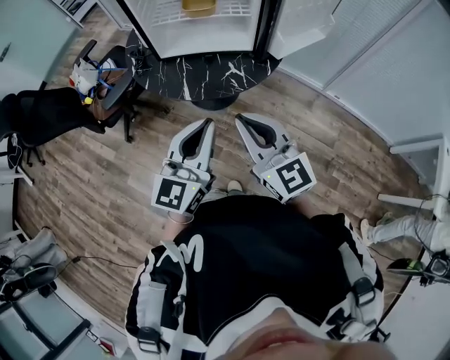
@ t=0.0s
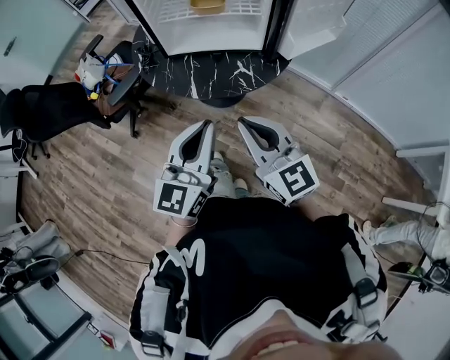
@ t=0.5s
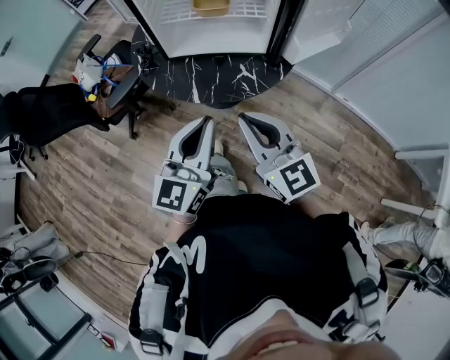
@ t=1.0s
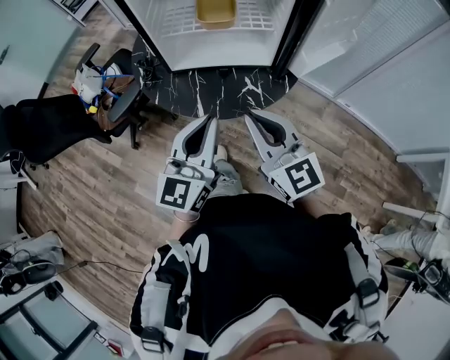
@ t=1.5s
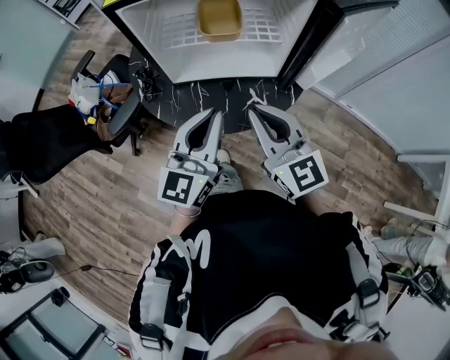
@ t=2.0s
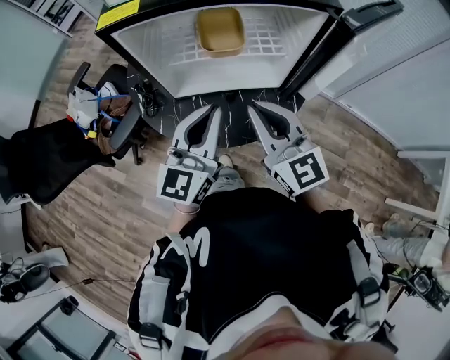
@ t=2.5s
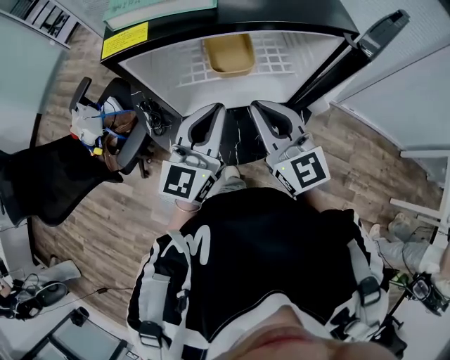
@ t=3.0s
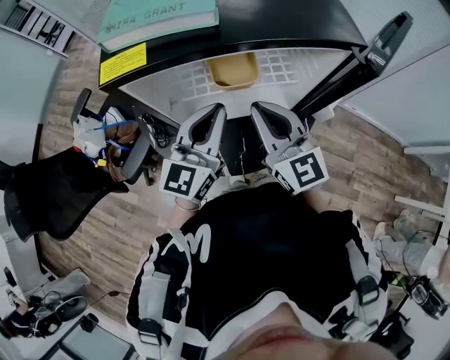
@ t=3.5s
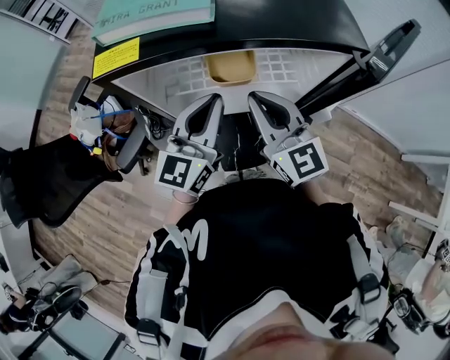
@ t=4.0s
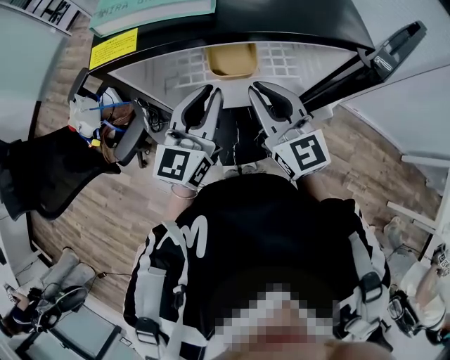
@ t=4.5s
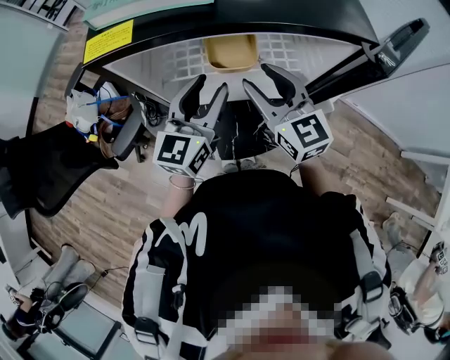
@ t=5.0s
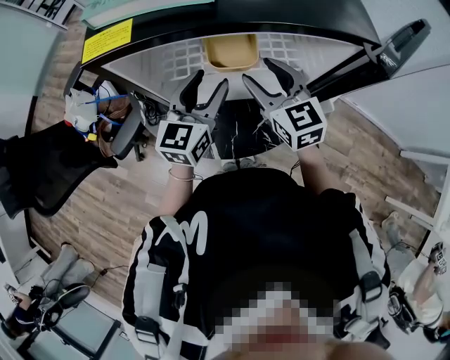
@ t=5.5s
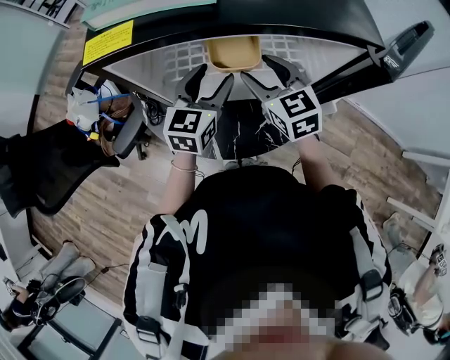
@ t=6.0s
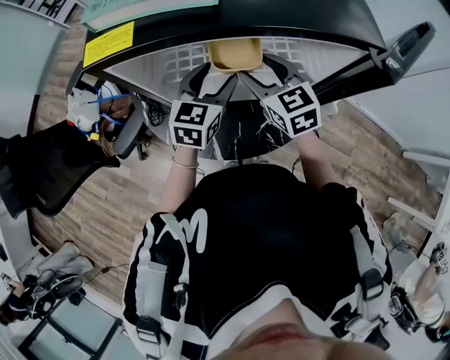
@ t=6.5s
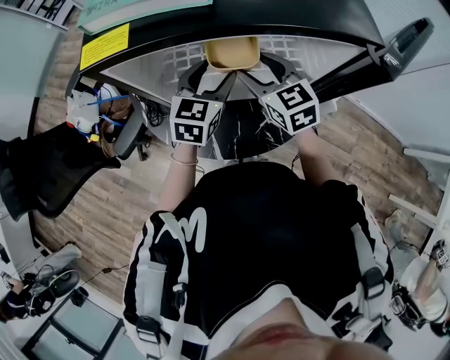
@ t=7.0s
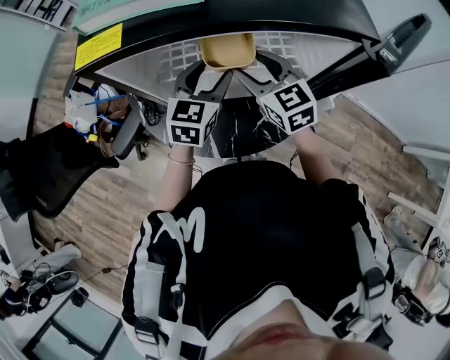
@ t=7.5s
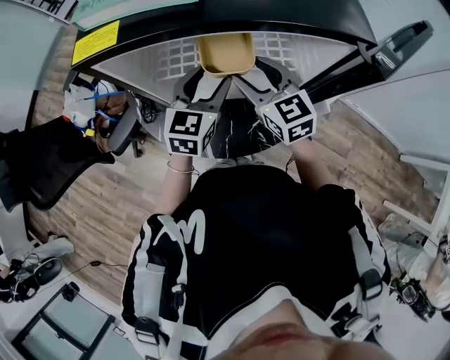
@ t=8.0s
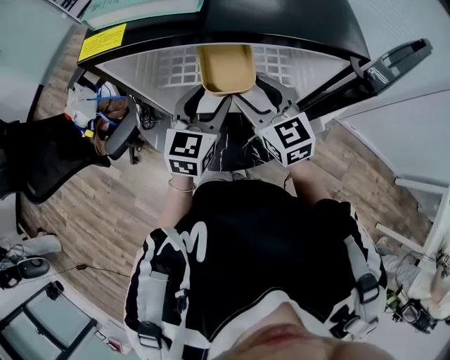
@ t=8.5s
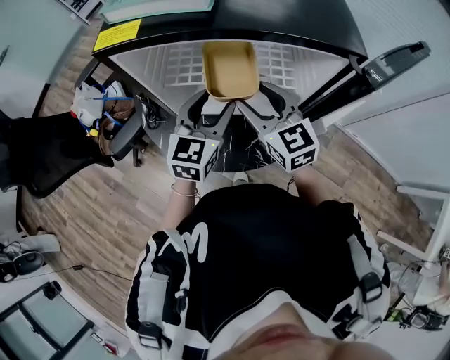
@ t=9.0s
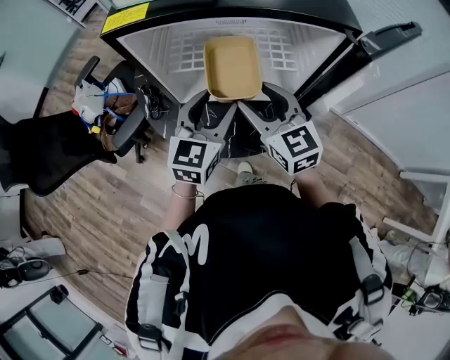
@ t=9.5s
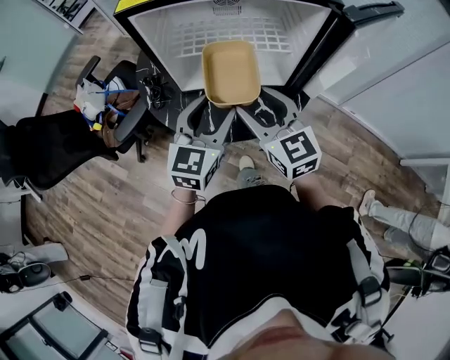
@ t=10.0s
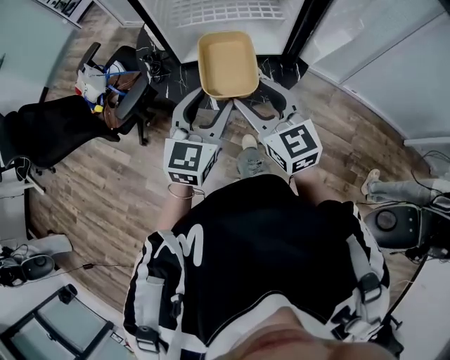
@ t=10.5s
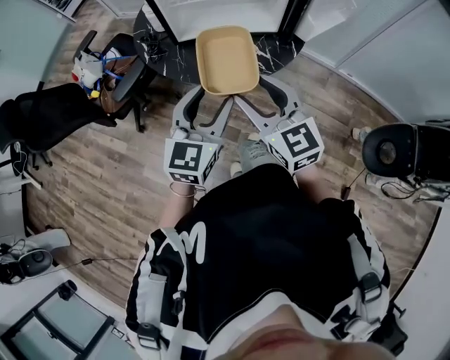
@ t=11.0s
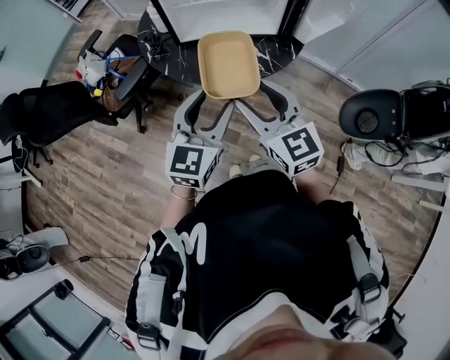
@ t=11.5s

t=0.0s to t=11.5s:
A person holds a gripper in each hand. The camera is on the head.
t=0.0s to t=2.0s: The grippers both shift forward by approximately 20 cm.
t=2.0s to t=4.0s: Both grippers travel together forward, some 20 cm.
t=4.0s to t=6.0s: Both grippers move downward and forward, roughly 10 cm. The left gripper opens up; the right gripper rotates roughly 20 degrees, and opens.
t=6.0s to t=7.5s: The grippers move only a little.
t=7.5s to t=9.5s: The grippers both shift backward by approximately 10 cm.
t=9.5s to t=11.5s: The grippers both shift backward by about 30 cm.

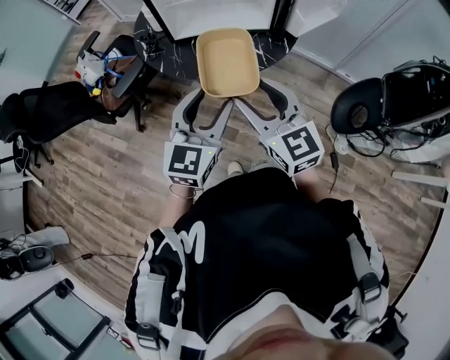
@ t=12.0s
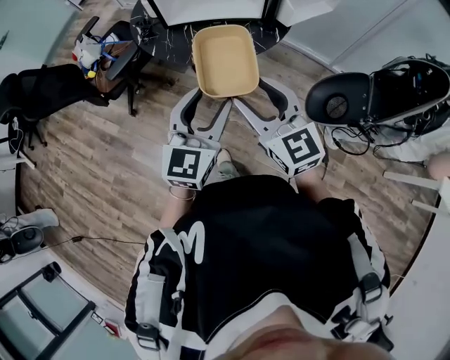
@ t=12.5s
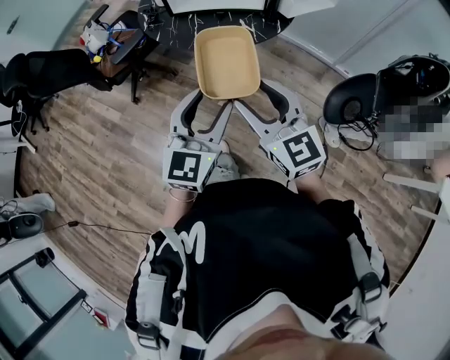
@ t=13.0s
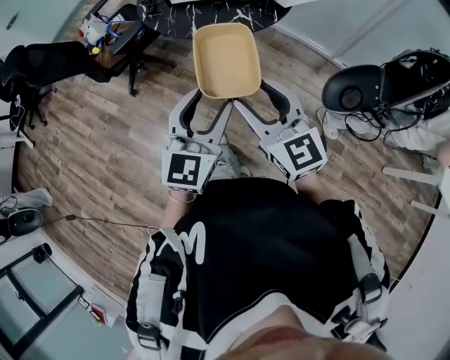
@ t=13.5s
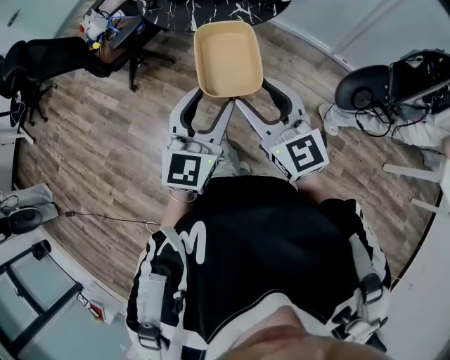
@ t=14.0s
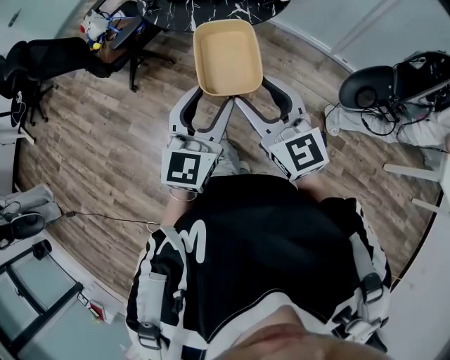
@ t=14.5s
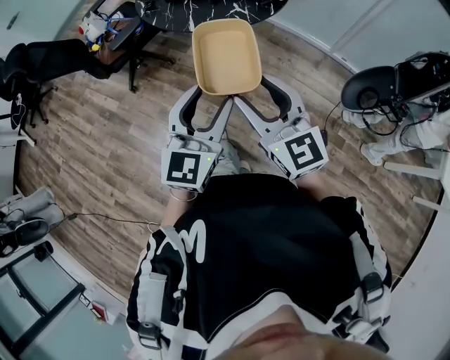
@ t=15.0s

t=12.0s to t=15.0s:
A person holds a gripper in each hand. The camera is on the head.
t=12.0s to t=13.5s: Both grippers travel together backward, about 20 cm.
t=13.5s to t=15.0s: The grippers stay close to where they were, moving slightly.

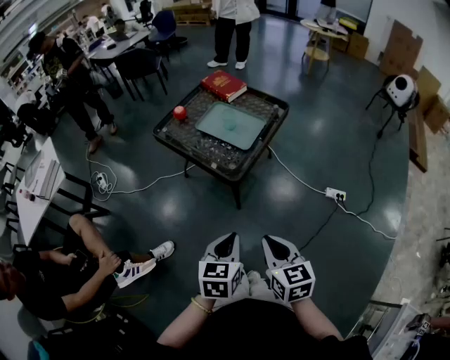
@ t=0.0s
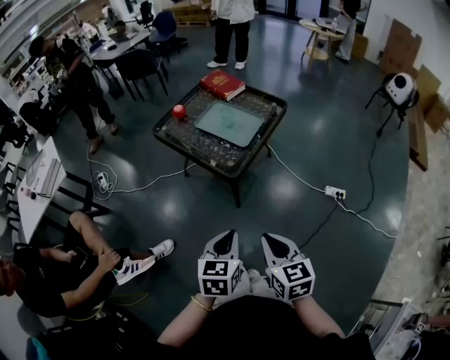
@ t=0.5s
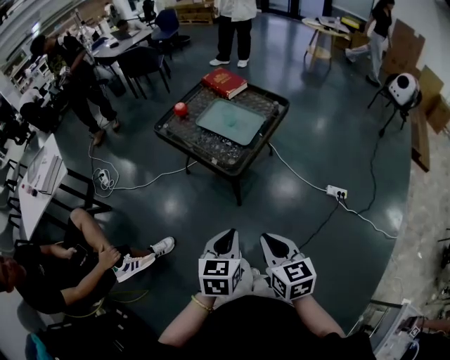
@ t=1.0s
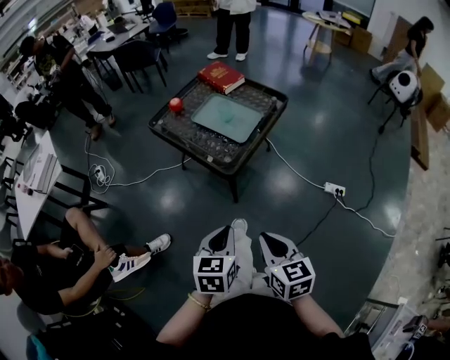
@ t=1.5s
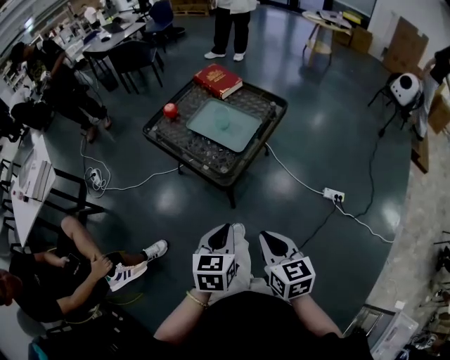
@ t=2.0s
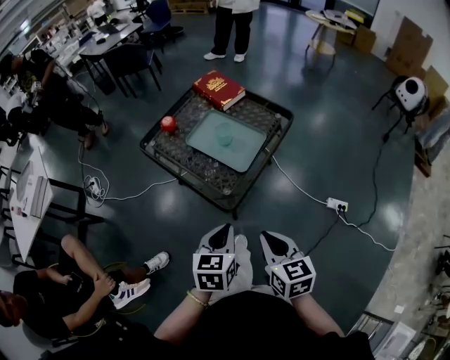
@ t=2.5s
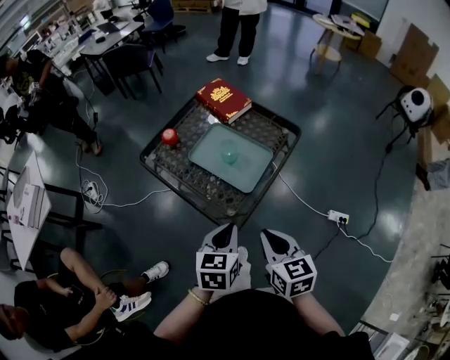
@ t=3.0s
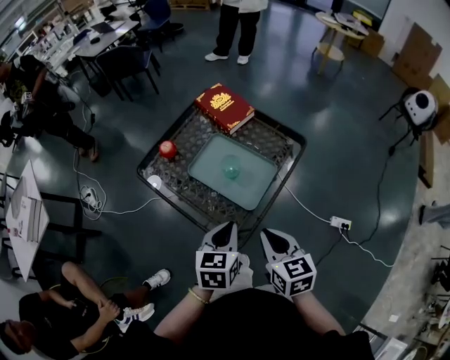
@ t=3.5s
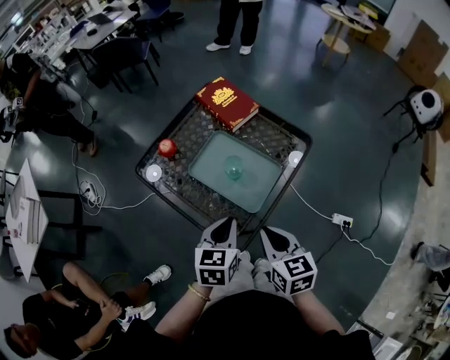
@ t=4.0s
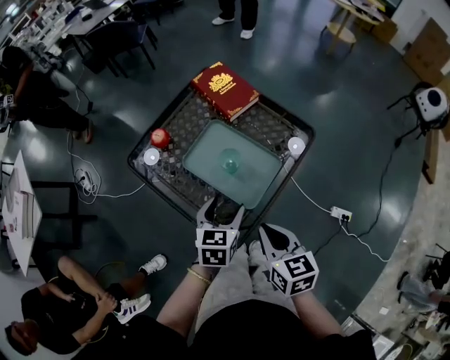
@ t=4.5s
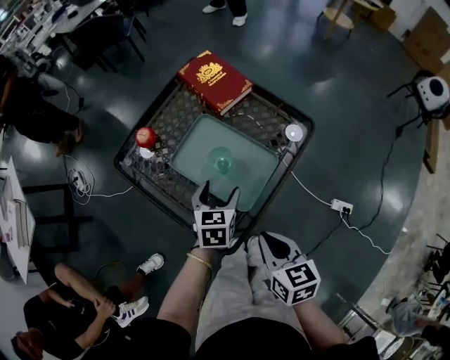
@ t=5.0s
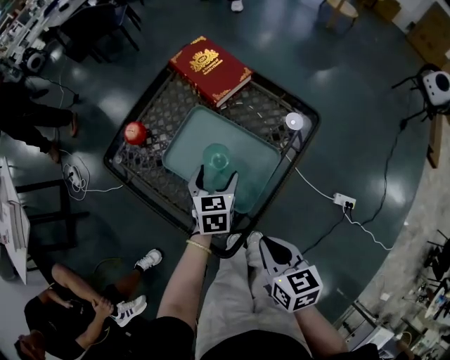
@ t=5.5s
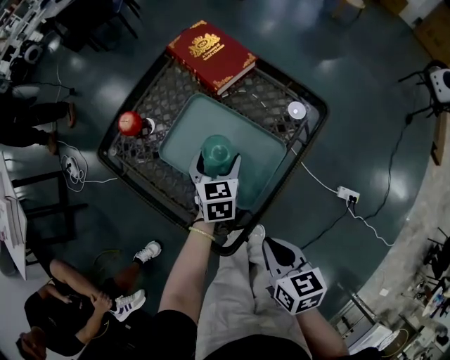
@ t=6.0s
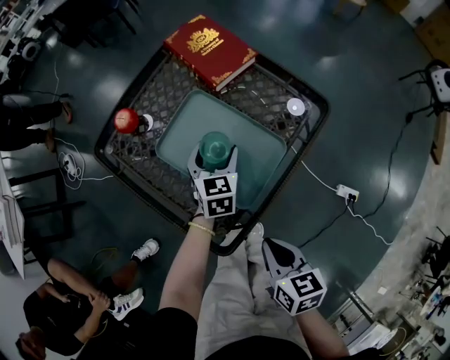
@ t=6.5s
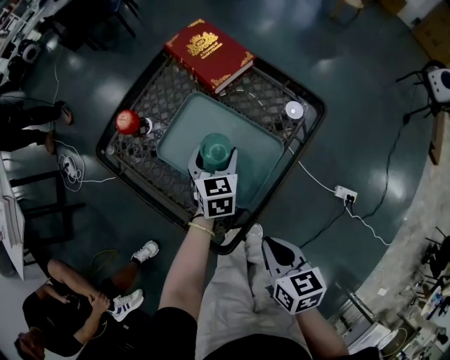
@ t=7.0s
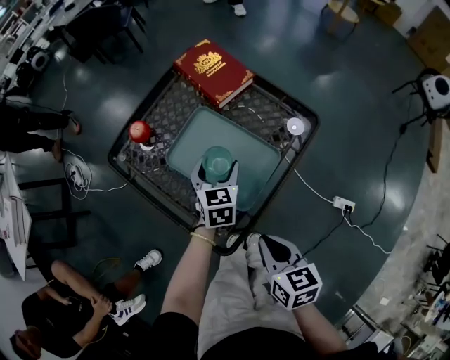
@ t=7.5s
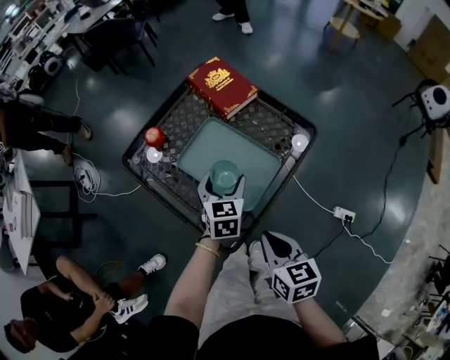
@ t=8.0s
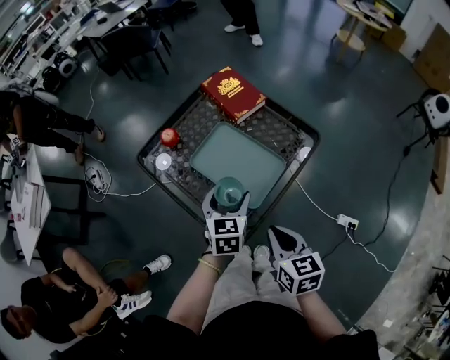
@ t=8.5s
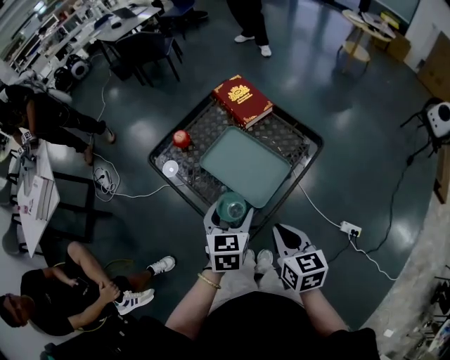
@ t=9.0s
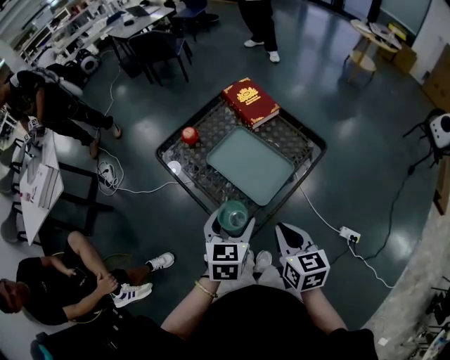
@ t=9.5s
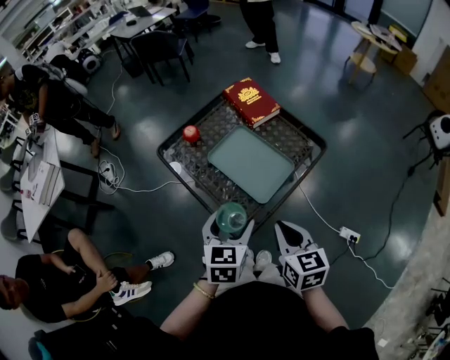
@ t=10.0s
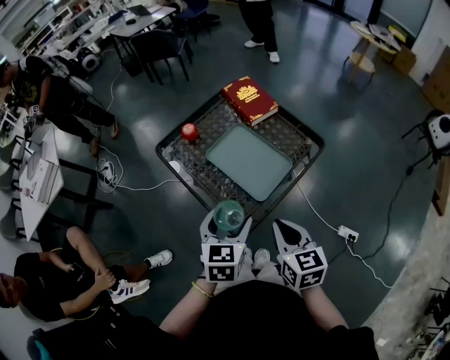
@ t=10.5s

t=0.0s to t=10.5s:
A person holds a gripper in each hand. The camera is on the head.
t=0.0s to t=2.0s: Both grippers travel together forward, some 5 cm.
t=2.0s to t=4.0s: Both grippers travel together forward, roughly 35 cm.
t=4.0s to t=6.5s: The right gripper goes approximately 15 cm downward, while the left gripper shifts about 30 cm forward and downward, and opens its fingers.
t=6.5s to t=8.5s: The left gripper moves upward and backward, some 20 cm. The right gripper shifts some 10 cm upward.
t=8.5s to t=10.5s: The right gripper goes roughly 5 cm upward. The left gripper shifts roughly 15 cm backward and upward.

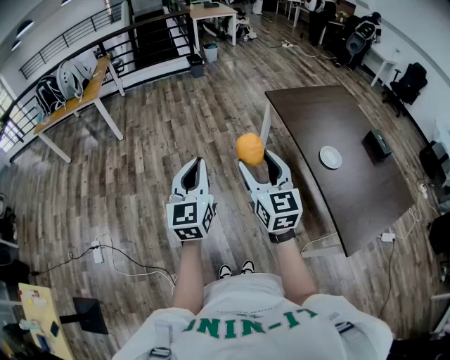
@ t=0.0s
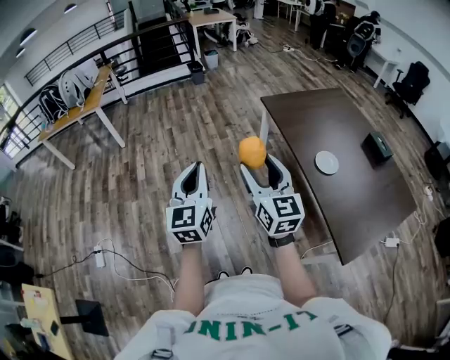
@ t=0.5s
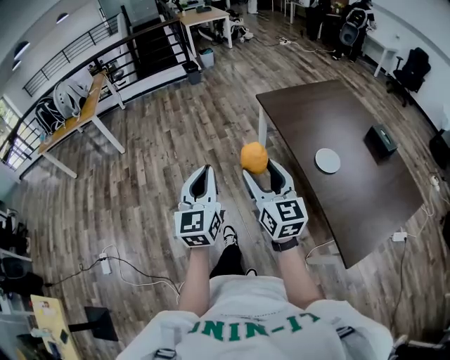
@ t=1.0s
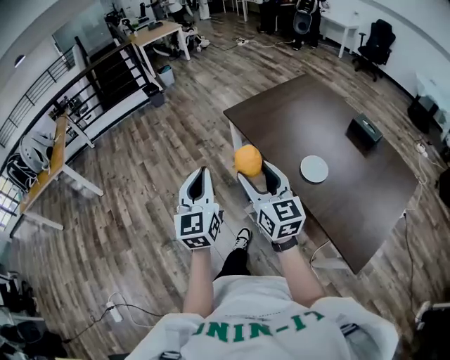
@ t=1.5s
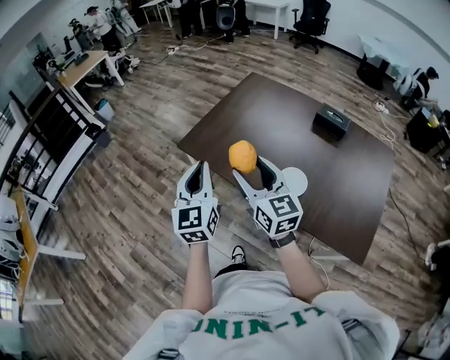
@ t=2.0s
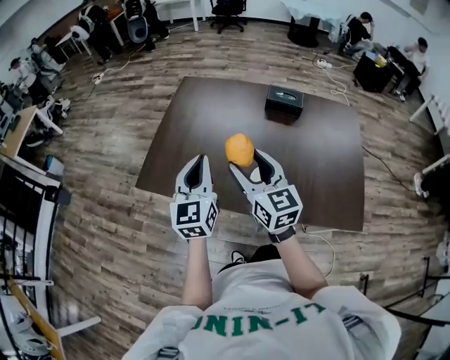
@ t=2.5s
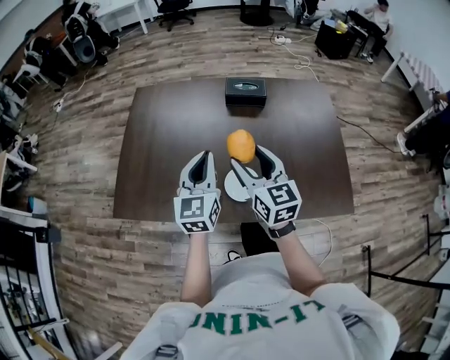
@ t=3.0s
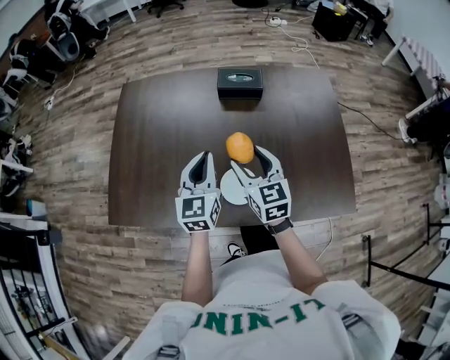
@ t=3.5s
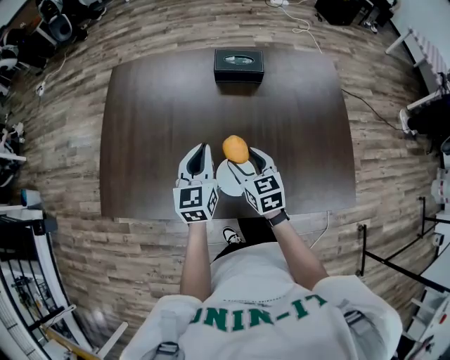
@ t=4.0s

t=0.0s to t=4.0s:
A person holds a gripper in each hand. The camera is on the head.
t=0.0s to t=2.0s: The two grippers travel together, some 60 cm. The left gripper changes its angle by some 40 degrees. The right gripper turns by some 30 degrees.
t=2.0s to t=4.0s: The left gripper shifts by roughly 50 cm, and rotates roughly 40 degrees, while the right gripper shifts by roughly 40 cm, and swivels about 40 degrees.
